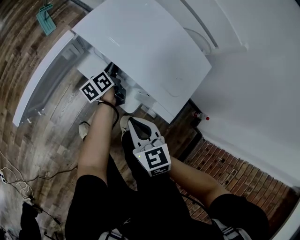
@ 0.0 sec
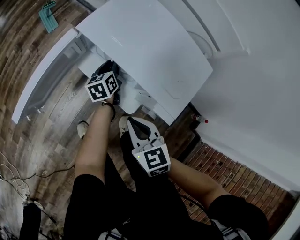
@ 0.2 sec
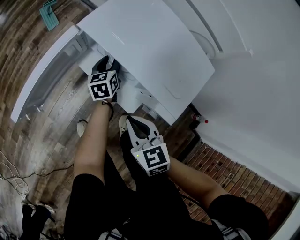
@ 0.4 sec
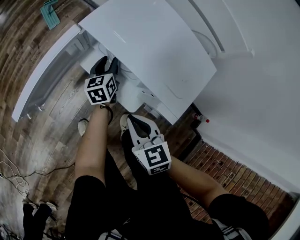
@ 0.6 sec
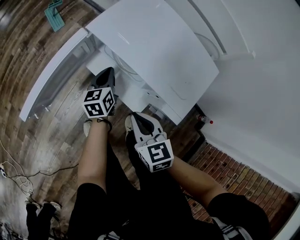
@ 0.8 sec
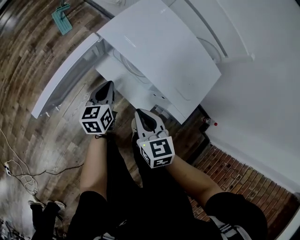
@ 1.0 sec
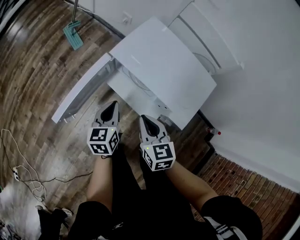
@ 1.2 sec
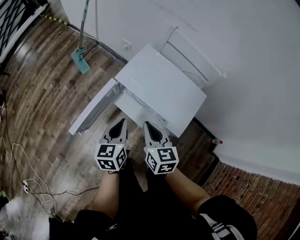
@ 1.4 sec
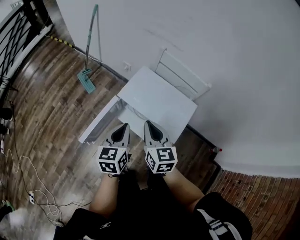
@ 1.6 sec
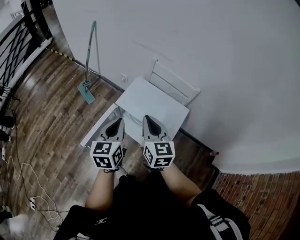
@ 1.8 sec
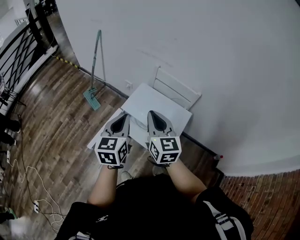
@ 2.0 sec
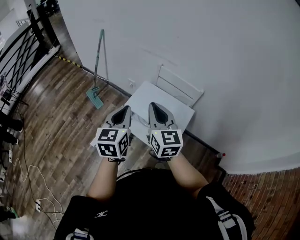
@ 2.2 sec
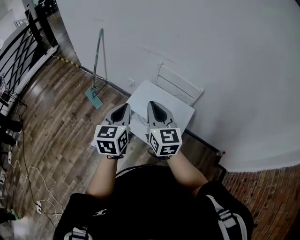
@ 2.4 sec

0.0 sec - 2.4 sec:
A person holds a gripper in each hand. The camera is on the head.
0.0 sec - 1.2 sec: The right gripper shifts about 5 cm upward. The left gripper shifts approximately 25 cm upward, to the left and backward, rotates around the line of its fingers by approximately 40 degrees, clockwise from behind, and opens, then closes once more.
1.2 sec - 2.4 sec: The grippers both shift upward by roughly 35 cm. The left gripper swivels about 20 degrees. The right gripper angles its fingers upward, by approximately 30 degrees.

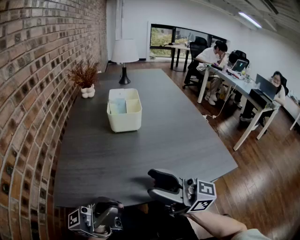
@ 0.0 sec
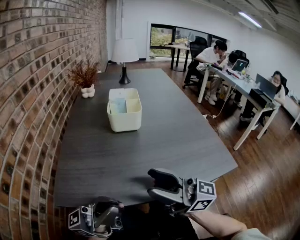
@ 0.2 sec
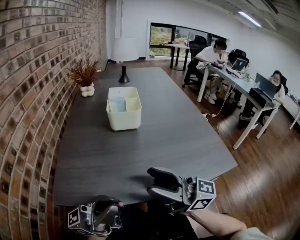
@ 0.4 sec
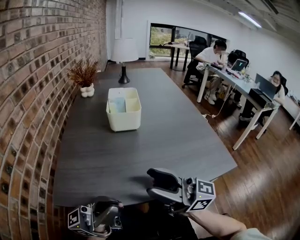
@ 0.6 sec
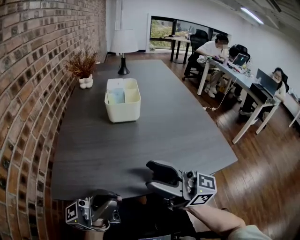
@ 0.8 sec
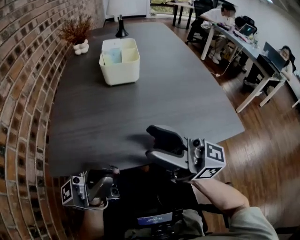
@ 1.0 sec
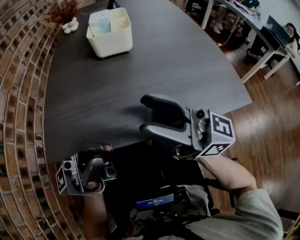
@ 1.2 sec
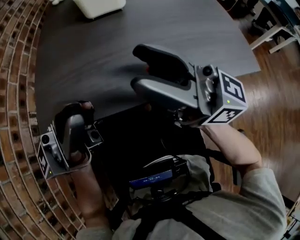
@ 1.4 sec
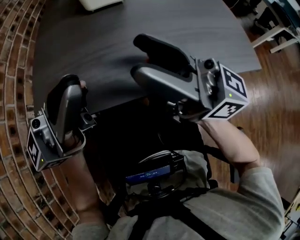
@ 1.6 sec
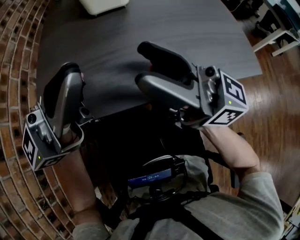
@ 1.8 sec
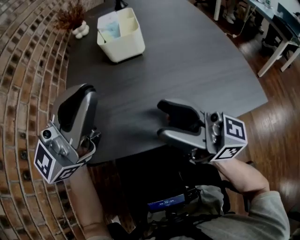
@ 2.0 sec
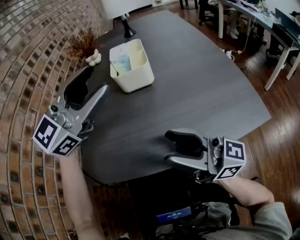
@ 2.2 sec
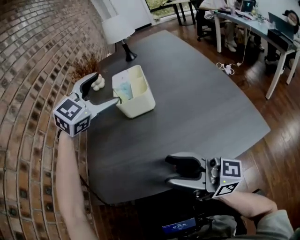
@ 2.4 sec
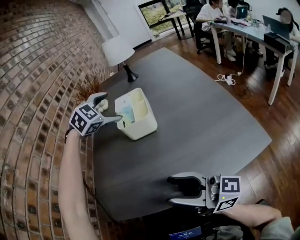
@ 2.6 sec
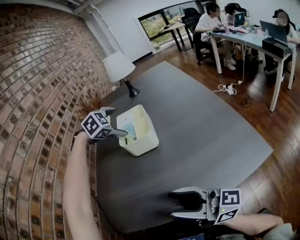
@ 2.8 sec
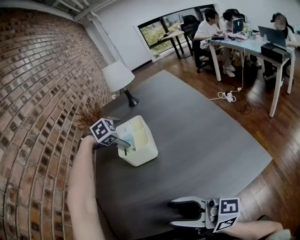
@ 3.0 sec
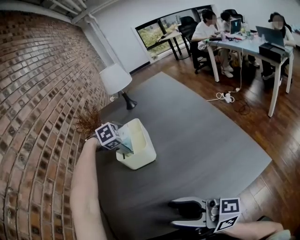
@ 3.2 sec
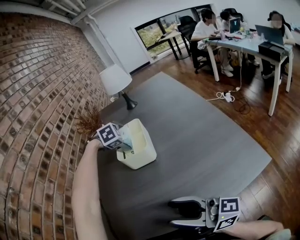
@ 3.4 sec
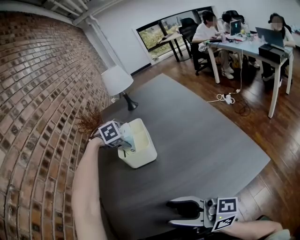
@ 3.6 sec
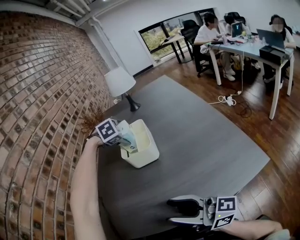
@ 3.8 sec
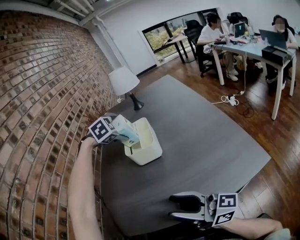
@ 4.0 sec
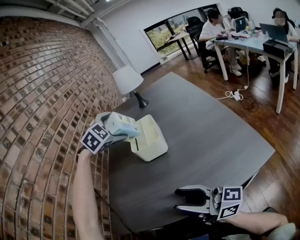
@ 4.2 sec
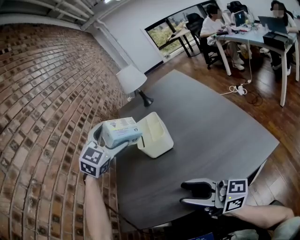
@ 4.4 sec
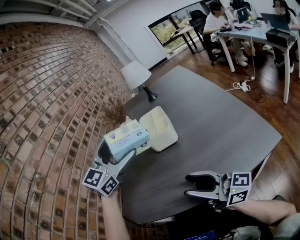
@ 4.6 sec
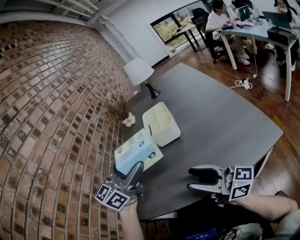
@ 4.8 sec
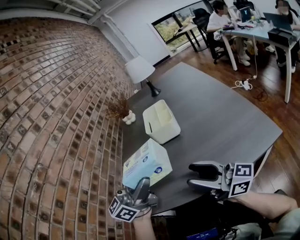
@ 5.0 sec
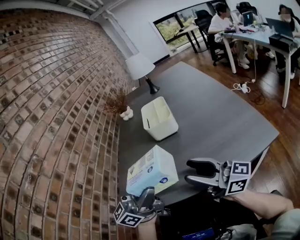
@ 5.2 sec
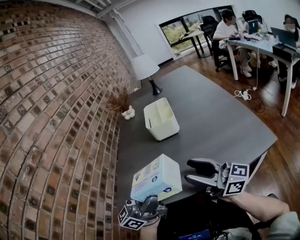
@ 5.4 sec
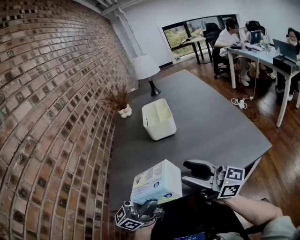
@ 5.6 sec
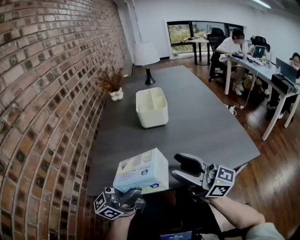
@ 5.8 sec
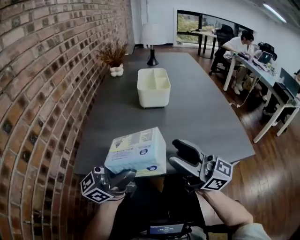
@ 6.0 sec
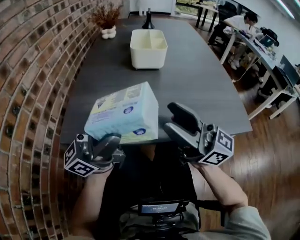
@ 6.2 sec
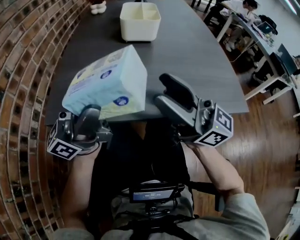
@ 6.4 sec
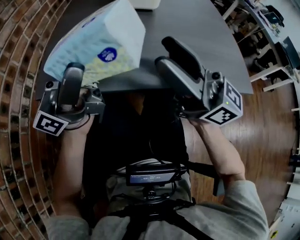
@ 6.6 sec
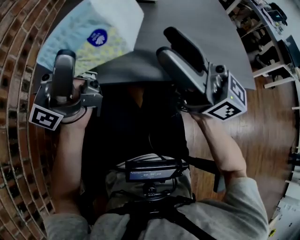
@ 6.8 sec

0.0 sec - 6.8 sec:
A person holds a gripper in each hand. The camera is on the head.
0.0 sec - 1.4 sec: The grippers make only small movements.
1.4 sec - 2.8 sec: The left gripper moves roughly 10 cm upward and comes back, tips its fingers downward by roughly 90 degrees, and opens up.
4.0 sec - 5.4 sec: The left gripper heads backward, covering about 40 cm, and angles its fingers upward, by about 90 degrees.
5.4 sec - 6.8 sec: The left gripper changes place by about 5 cm.

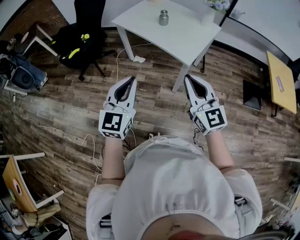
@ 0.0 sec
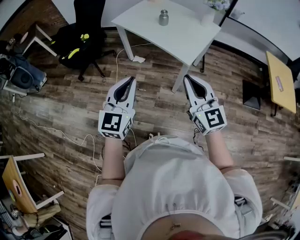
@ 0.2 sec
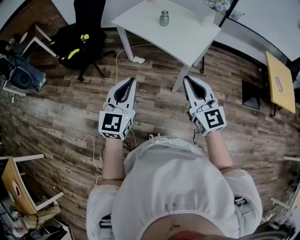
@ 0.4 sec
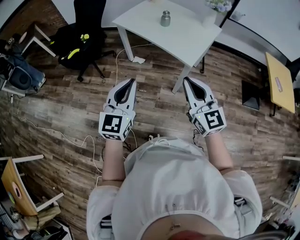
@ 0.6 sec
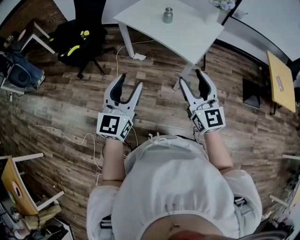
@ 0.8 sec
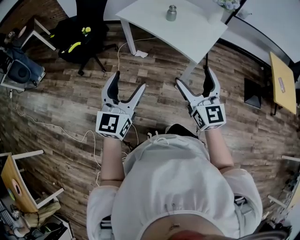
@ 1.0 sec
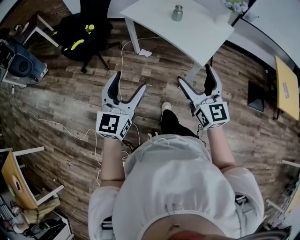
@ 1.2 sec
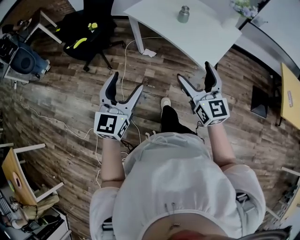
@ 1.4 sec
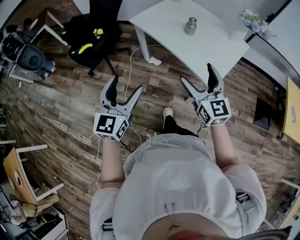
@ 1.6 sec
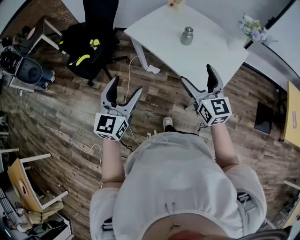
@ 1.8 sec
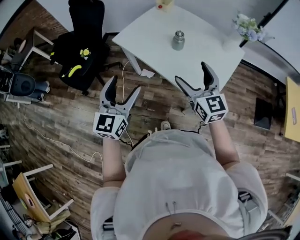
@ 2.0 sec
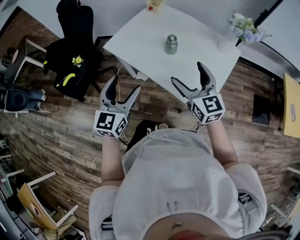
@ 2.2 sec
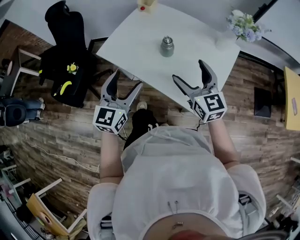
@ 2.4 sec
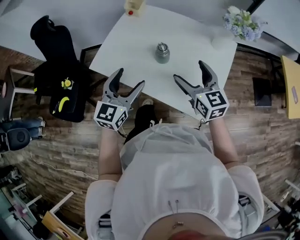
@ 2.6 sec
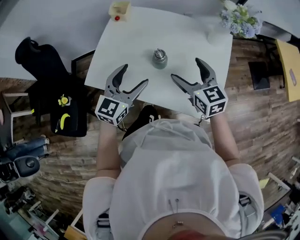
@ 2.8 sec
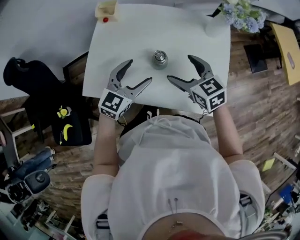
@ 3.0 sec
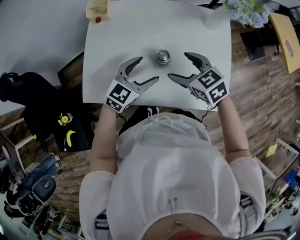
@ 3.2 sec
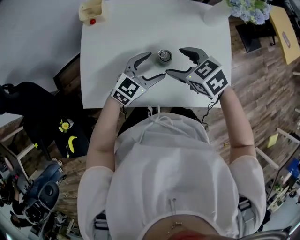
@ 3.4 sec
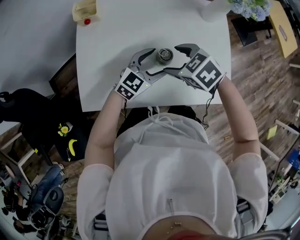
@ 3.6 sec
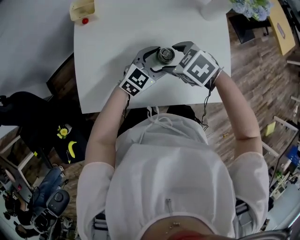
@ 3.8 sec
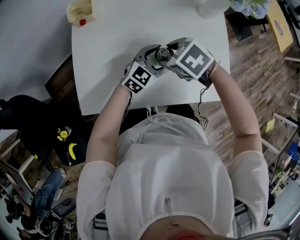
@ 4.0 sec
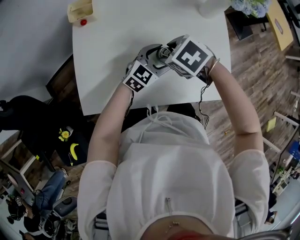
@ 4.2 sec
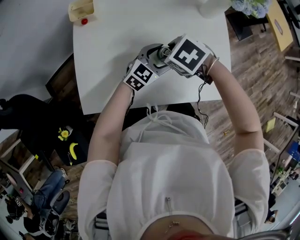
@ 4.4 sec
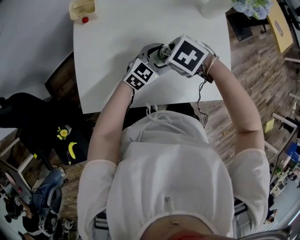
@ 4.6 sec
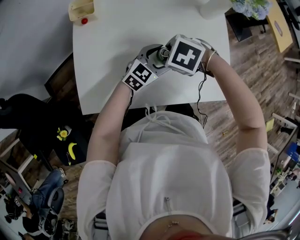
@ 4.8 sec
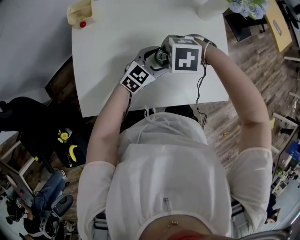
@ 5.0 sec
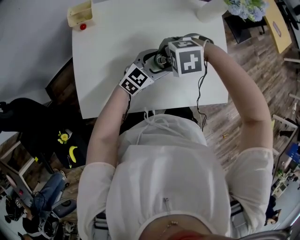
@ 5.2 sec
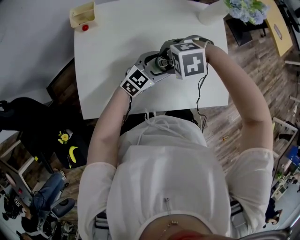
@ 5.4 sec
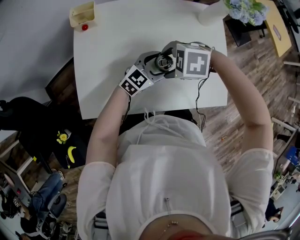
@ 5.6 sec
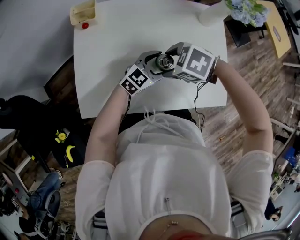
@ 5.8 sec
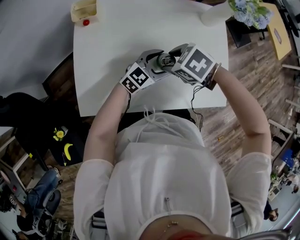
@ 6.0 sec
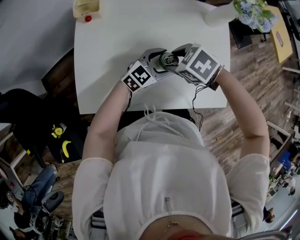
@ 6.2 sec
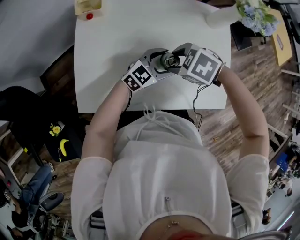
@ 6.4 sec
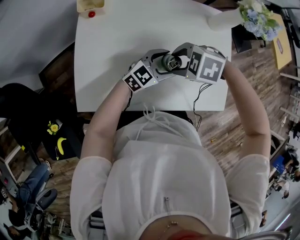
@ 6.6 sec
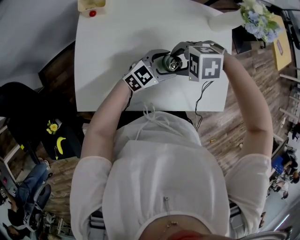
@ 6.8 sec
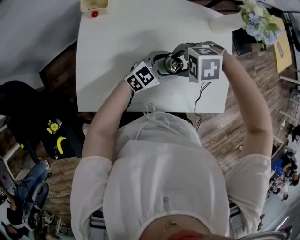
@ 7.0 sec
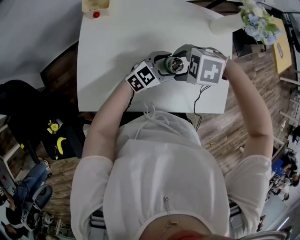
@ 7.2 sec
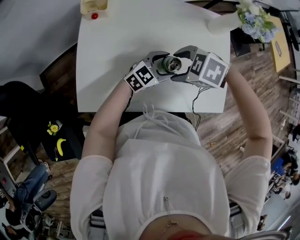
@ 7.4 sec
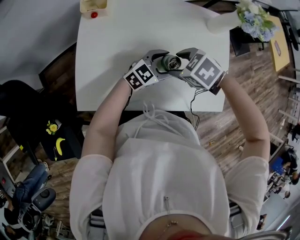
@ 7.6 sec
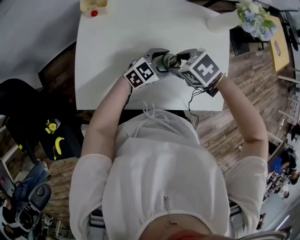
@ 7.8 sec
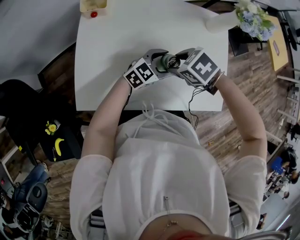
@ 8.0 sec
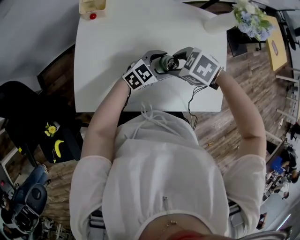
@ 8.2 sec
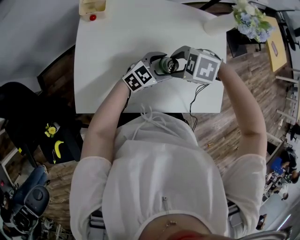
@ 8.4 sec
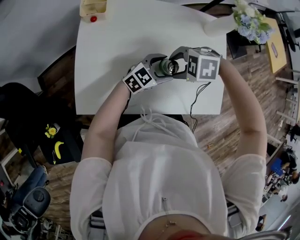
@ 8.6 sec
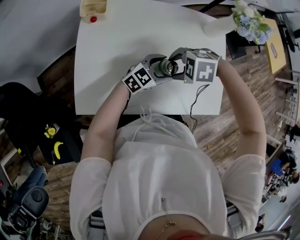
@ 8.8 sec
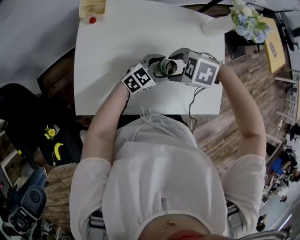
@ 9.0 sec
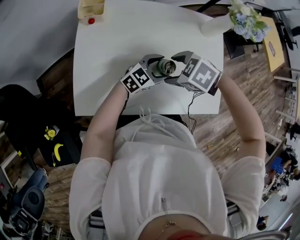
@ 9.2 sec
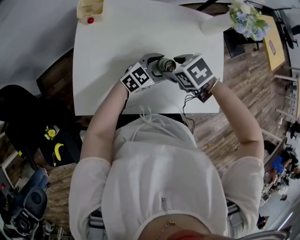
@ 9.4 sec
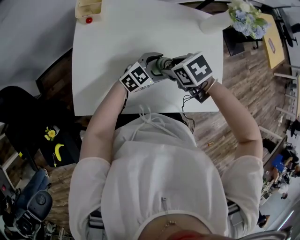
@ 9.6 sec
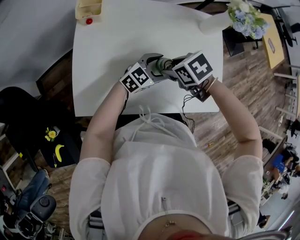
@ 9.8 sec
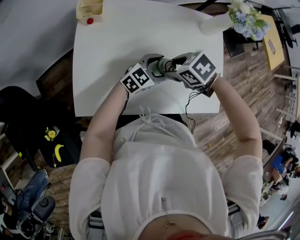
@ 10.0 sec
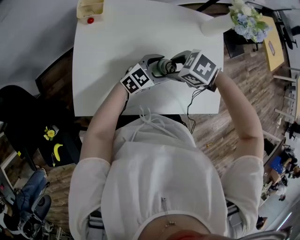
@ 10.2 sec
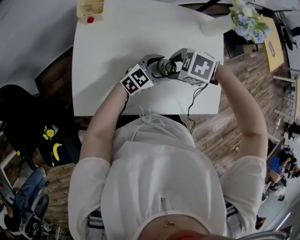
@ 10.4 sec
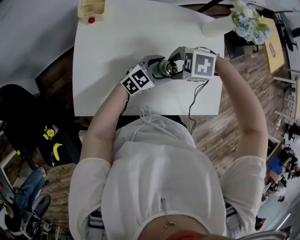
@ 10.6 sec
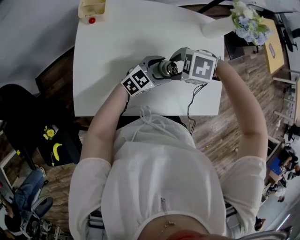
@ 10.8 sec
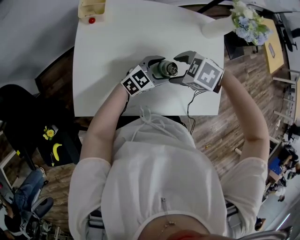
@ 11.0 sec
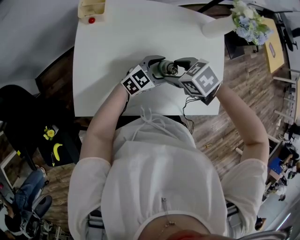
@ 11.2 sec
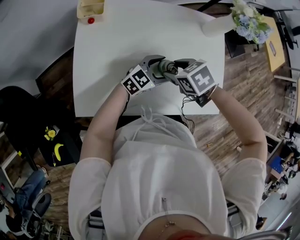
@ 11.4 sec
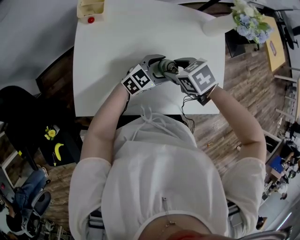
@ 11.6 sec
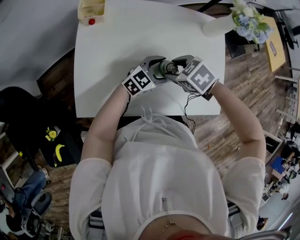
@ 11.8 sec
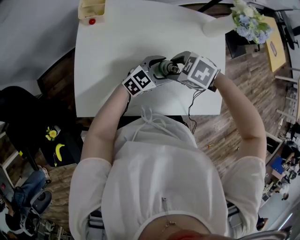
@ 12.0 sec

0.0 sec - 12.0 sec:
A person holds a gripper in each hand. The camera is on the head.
0.0 sec - 1.6 sec: The right gripper heads forward, covering approximately 20 cm, and opens. The left gripper travels forward and to the left by approximately 20 cm, and opens.
1.6 sec - 3.0 sec: The pair of grippers is taken roughly 50 cm. The right gripper tips its fingers downward by roughly 30 degrees, while the left gripper swivels about 60 degrees.
3.0 sec - 4.4 sec: The right gripper changes place by some 10 cm, tips its fingers downward by about 40 degrees, and closes; the left gripper shifts roughly 10 cm downward, and swivels about 30 degrees.
7.6 sec - 9.0 sec: The right gripper changes its angle by roughly 20 degrees.

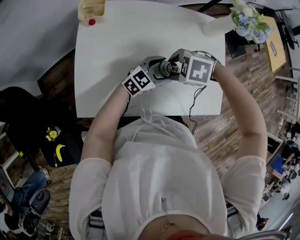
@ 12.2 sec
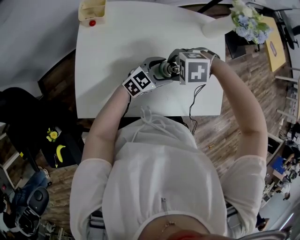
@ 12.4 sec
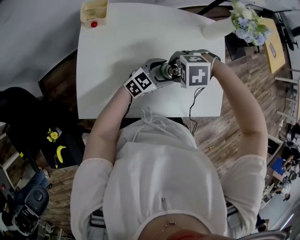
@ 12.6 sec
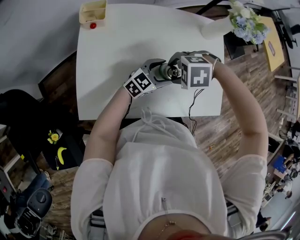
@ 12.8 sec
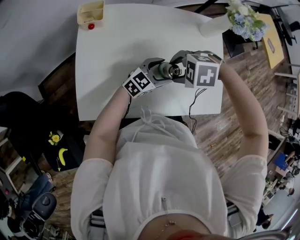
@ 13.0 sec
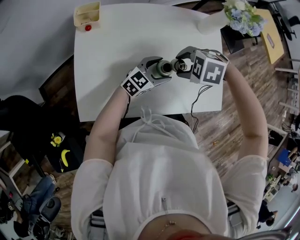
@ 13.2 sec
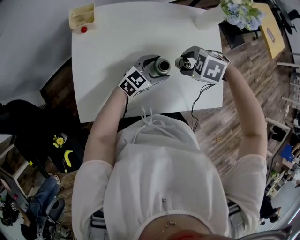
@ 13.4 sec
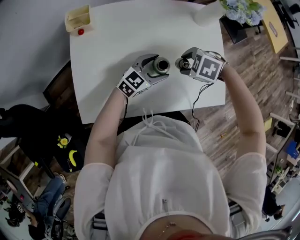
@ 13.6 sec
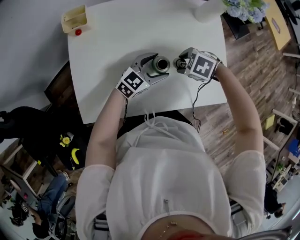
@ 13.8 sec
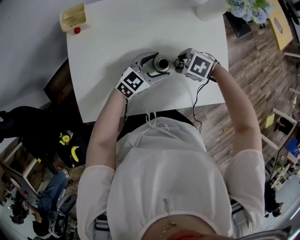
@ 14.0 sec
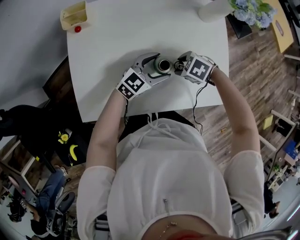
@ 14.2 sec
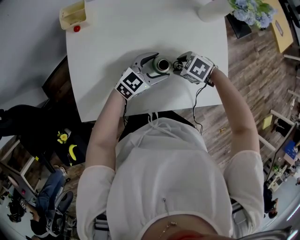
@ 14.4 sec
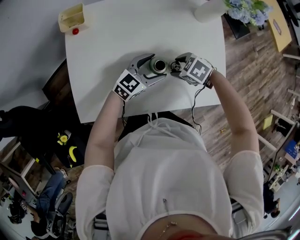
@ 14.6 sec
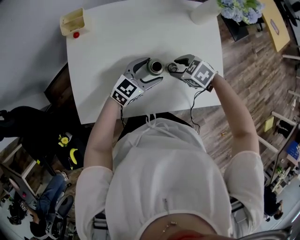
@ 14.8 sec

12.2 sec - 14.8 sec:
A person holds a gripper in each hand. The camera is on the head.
12.2 sec - 13.4 sec: The right gripper changes place by about 5 cm.
13.4 sec - 14.8 sec: The right gripper travels downward by some 5 cm, and turns by some 30 degrees.
